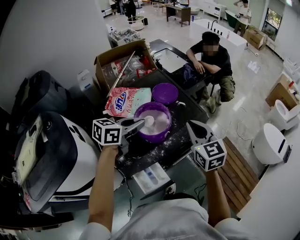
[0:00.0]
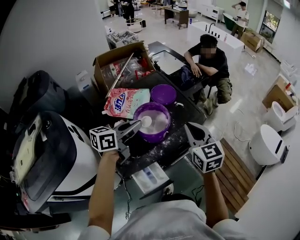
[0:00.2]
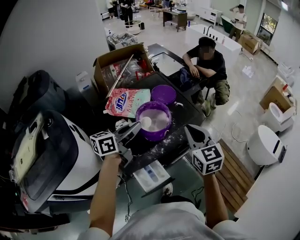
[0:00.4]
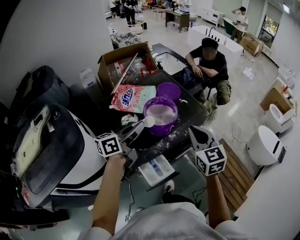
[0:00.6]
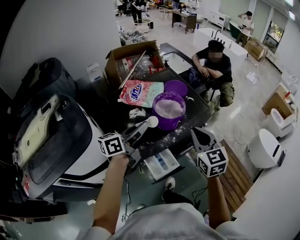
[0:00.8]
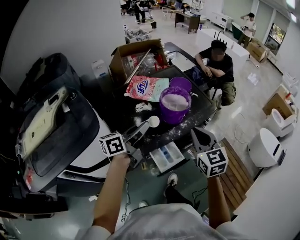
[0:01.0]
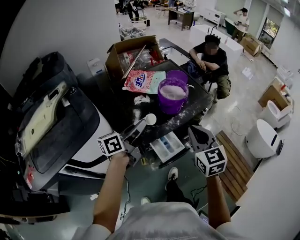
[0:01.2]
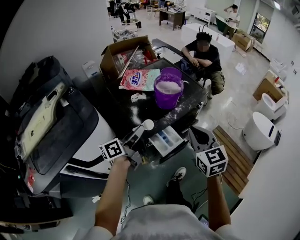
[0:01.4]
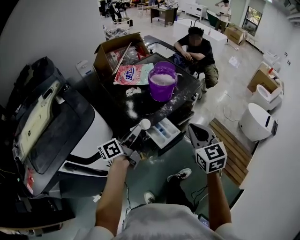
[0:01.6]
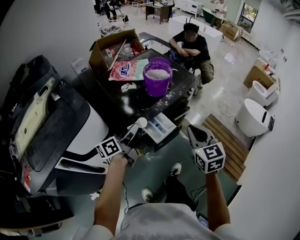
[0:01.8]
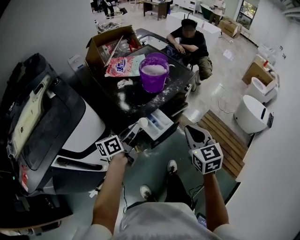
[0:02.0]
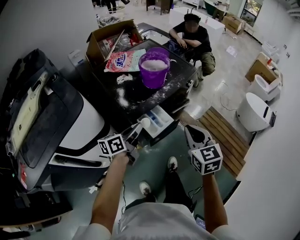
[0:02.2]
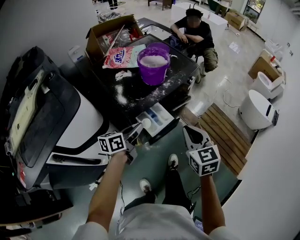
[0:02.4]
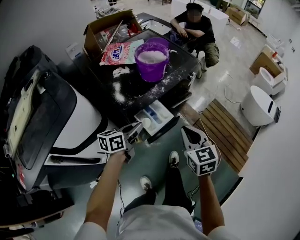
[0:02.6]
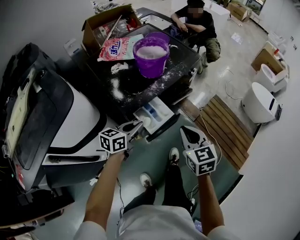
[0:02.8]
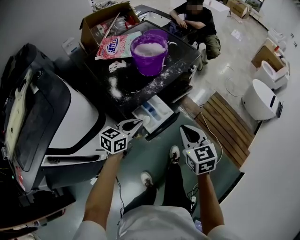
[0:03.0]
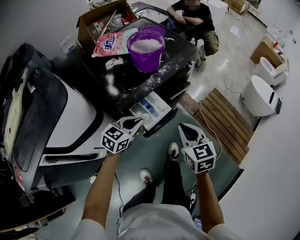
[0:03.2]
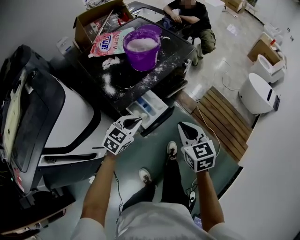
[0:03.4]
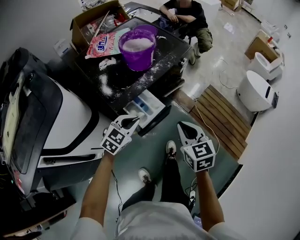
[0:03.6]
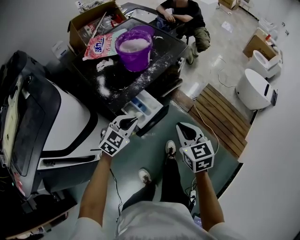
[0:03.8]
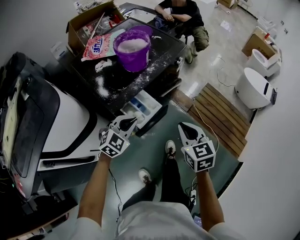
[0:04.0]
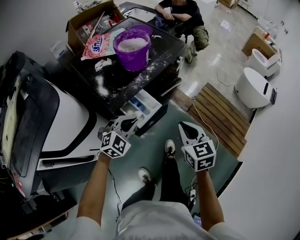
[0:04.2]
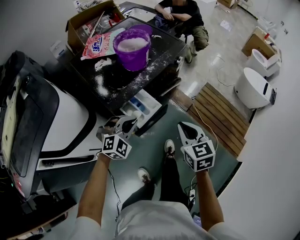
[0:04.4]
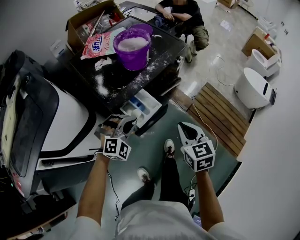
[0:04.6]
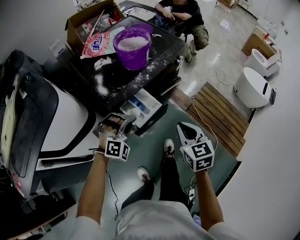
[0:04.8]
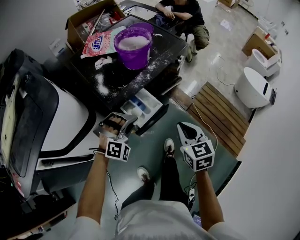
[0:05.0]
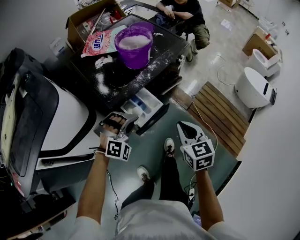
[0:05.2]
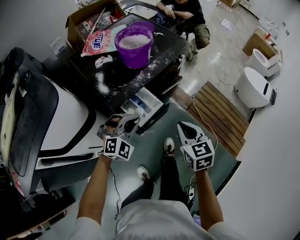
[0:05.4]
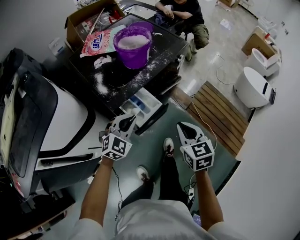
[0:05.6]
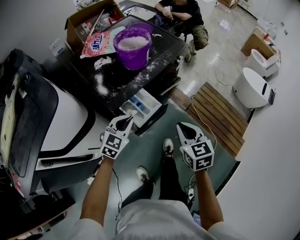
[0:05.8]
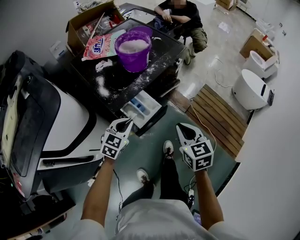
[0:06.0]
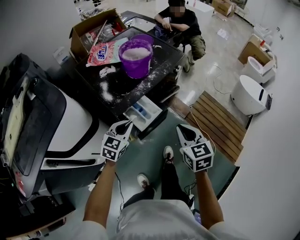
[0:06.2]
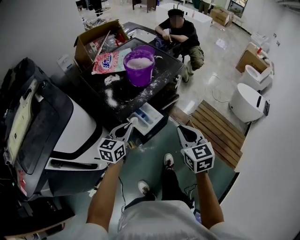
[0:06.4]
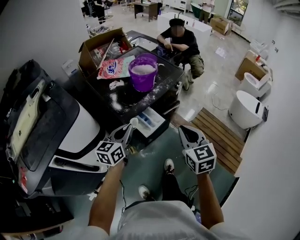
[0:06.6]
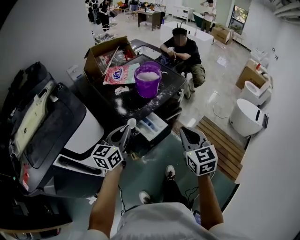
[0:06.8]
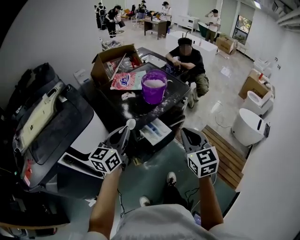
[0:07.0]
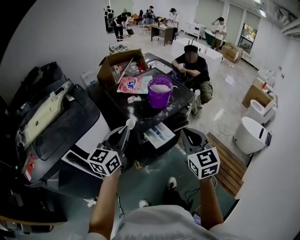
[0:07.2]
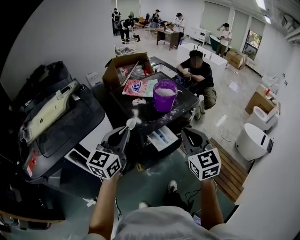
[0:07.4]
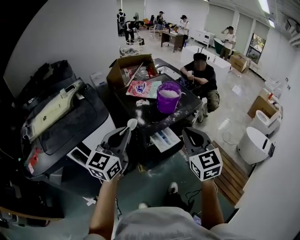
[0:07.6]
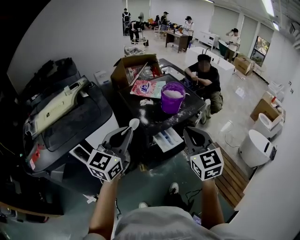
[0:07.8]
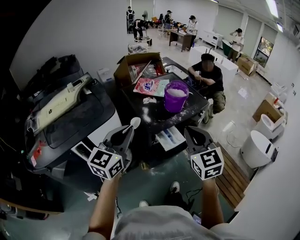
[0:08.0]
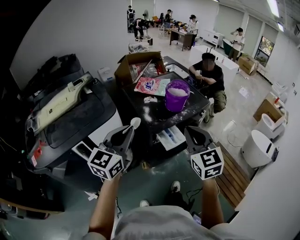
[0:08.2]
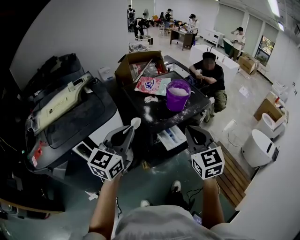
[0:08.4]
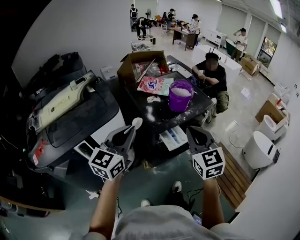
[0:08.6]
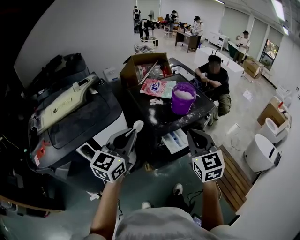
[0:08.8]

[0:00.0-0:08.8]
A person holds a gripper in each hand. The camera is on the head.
0:00.0 to 0:01.4: Both grippers move backward, some 25 cm. The left gripper swivels roughly 40 degrees.
0:01.4 to 0:03.0: The right gripper goes roughly 15 cm downward; the left gripper moves downward and to the right, approximately 20 cm, and rotates some 50 degrees.
0:03.0 to 0:04.4: The left gripper rolls clockwise, seen from behind, by some 70 degrees.
0:04.4 to 0:05.8: The left gripper swivels roughly 40 degrees.
0:05.8 to 0:07.4: The right gripper heads upward and to the left, covering about 25 cm, and turns by some 30 degrees, while the left gripper shifts about 30 cm upward, and angles its fingers upward, by approximately 30 degrees.
0:07.4 to 0:08.8: The right gripper moves to the left, some 5 cm.

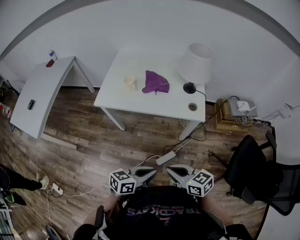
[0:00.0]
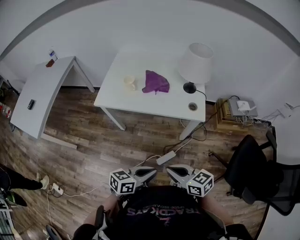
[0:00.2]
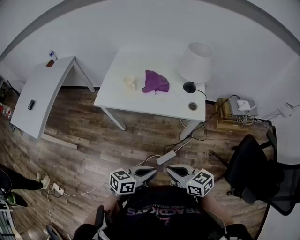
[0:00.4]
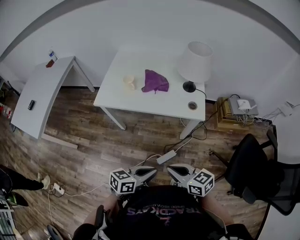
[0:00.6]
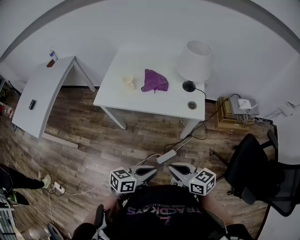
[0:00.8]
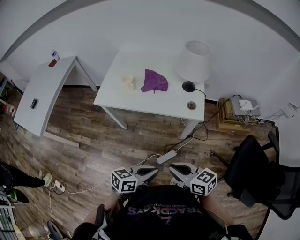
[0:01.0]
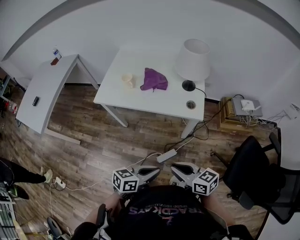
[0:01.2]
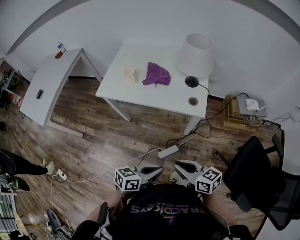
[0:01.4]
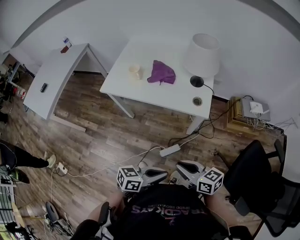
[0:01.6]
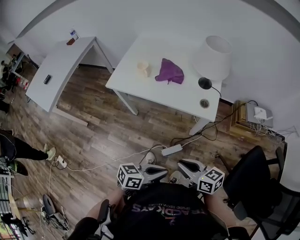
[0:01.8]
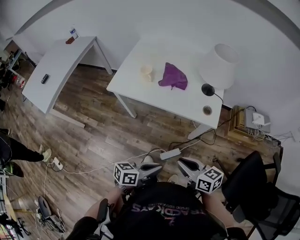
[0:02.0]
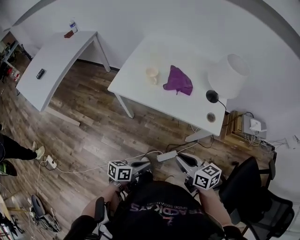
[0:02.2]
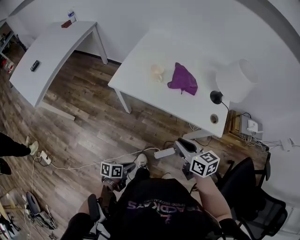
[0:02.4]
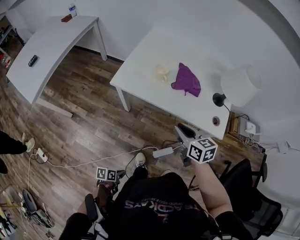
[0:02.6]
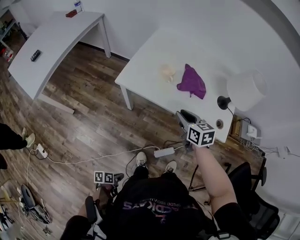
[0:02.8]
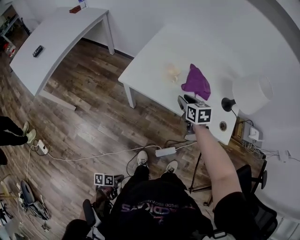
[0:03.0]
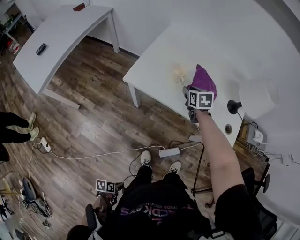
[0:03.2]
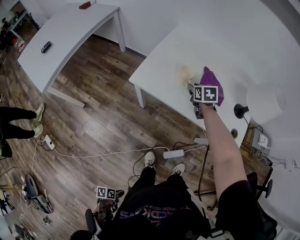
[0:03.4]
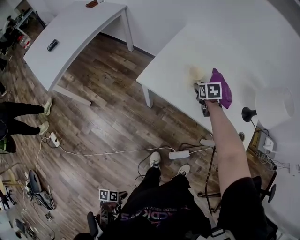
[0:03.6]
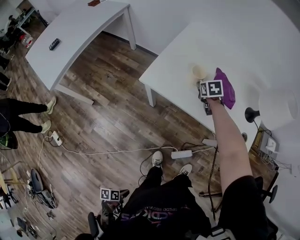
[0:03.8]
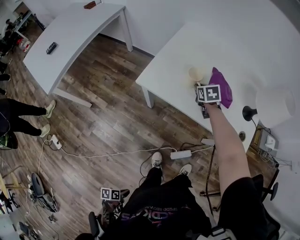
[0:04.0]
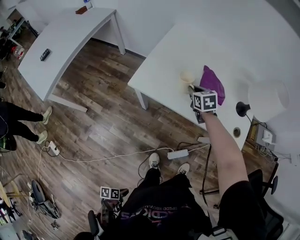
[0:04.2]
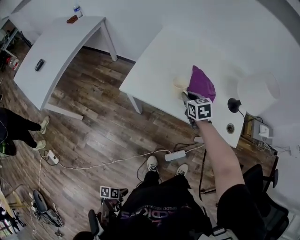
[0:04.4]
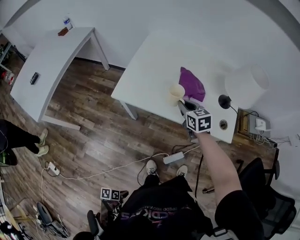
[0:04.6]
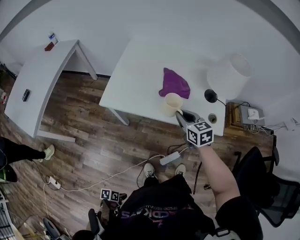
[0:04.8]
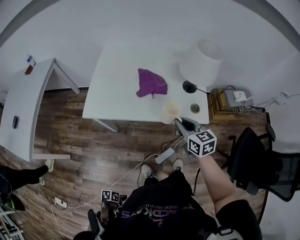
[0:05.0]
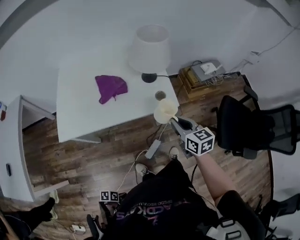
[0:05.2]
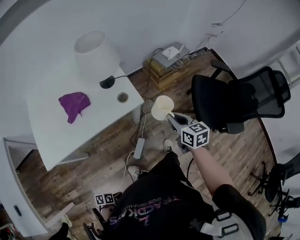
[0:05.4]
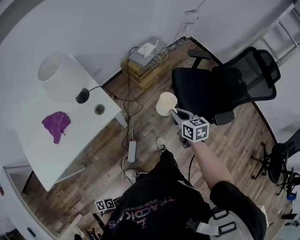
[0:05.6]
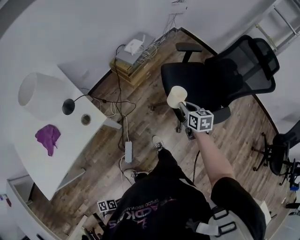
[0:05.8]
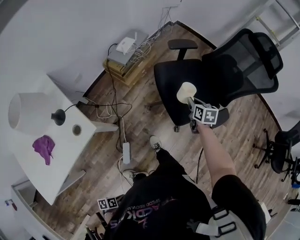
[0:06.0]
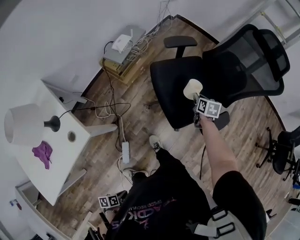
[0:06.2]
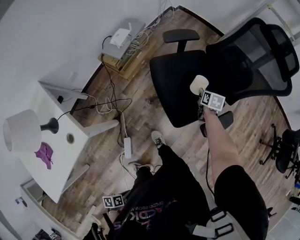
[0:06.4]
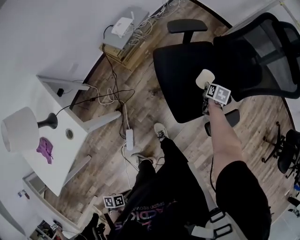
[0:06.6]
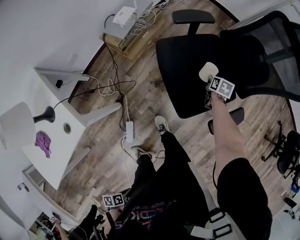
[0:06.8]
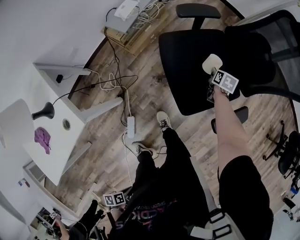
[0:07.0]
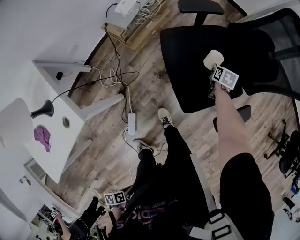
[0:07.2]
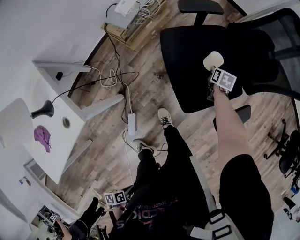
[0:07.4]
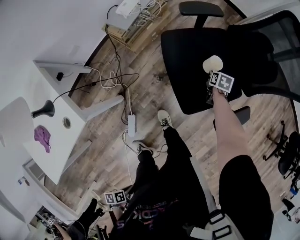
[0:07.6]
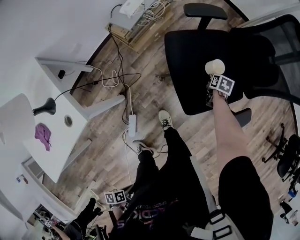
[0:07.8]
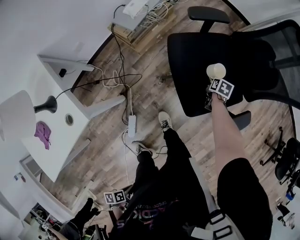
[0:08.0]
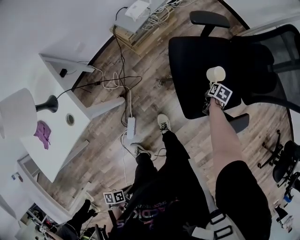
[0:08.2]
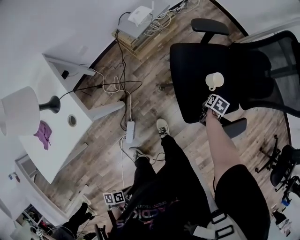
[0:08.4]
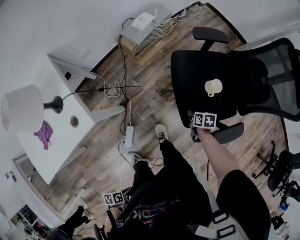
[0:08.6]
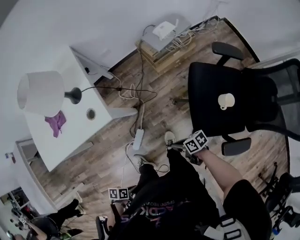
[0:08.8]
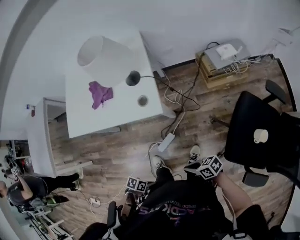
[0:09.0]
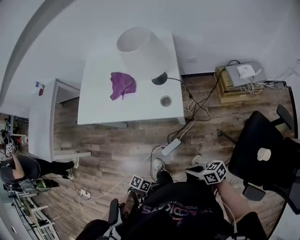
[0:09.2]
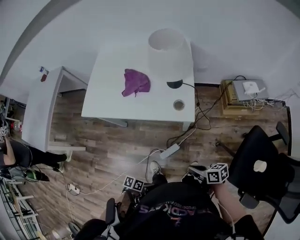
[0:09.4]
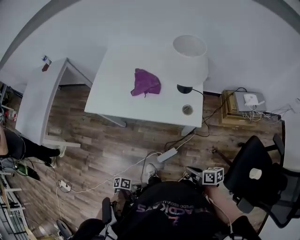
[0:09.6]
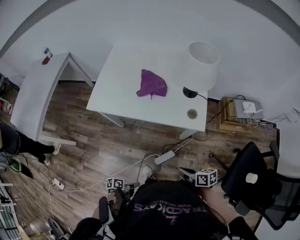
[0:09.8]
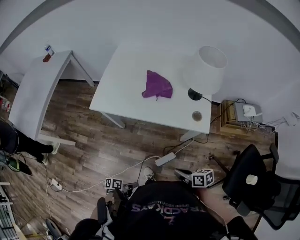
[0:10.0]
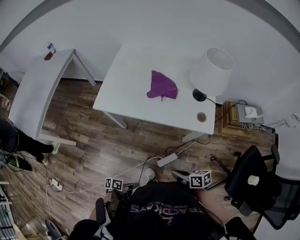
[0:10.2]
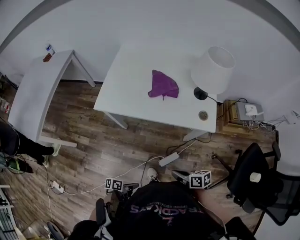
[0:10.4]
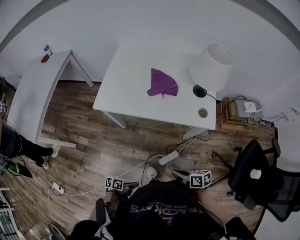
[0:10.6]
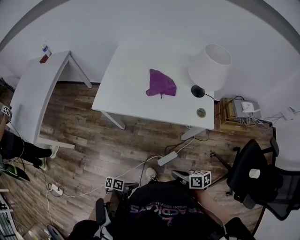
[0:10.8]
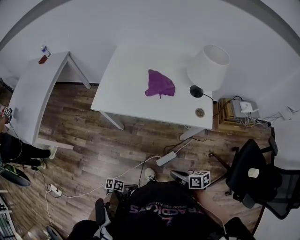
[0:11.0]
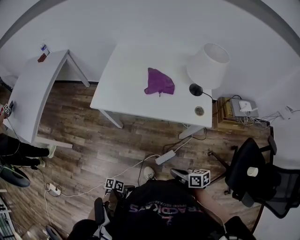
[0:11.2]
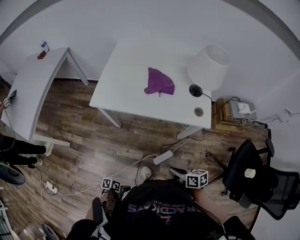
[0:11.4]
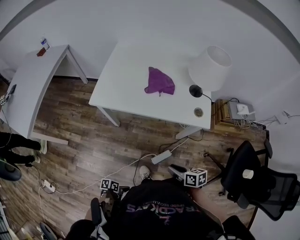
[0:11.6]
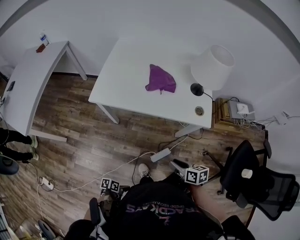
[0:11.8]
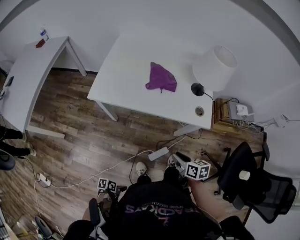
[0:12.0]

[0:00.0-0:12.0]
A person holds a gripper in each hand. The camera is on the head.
0:00.0 to 0:01.6: The right gripper ends up about 10 cm from where it was.
0:01.6 to 0:03.0: The right gripper ends up approximately 50 cm from where it was, and turns by roughly 30 degrees.
0:04.4 to 0:06.0: The right gripper moves some 10 cm upward and comes back, and swivels about 90 degrees.
0:06.0 to 0:07.6: The right gripper heads downward, covering roughly 20 cm, and turns by some 20 degrees.
0:07.6 to 0:09.0: The right gripper moves roughly 60 cm, and tips its fingers upward by about 40 degrees.
0:09.0 to 0:10.4: The right gripper moves approximately 30 cm.
0:10.4 to 0:12.0: The right gripper changes place by approximately 10 cm, turns by approximately 20 degrees, and opens.

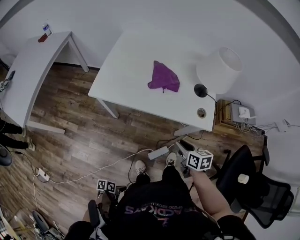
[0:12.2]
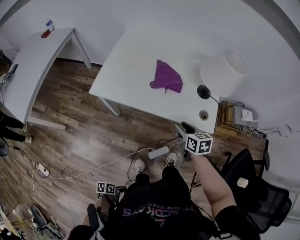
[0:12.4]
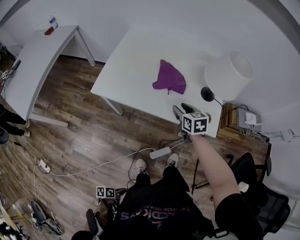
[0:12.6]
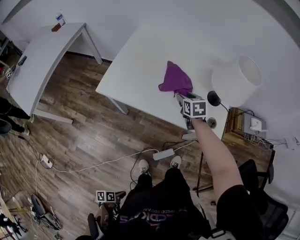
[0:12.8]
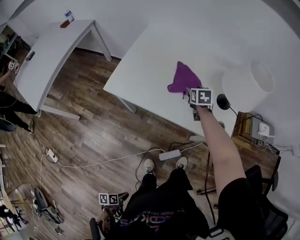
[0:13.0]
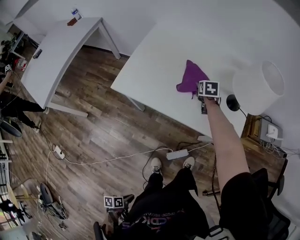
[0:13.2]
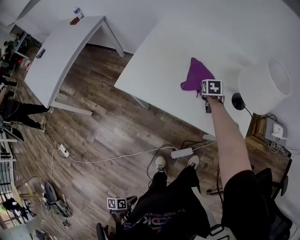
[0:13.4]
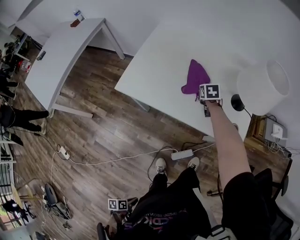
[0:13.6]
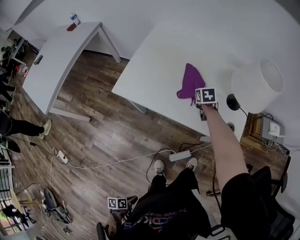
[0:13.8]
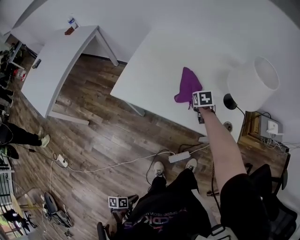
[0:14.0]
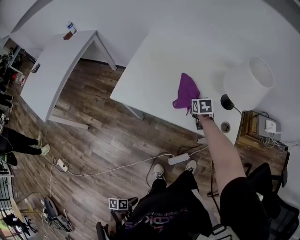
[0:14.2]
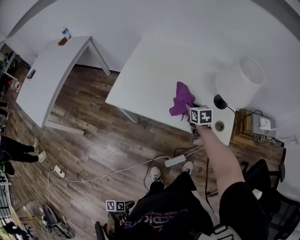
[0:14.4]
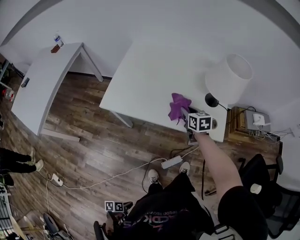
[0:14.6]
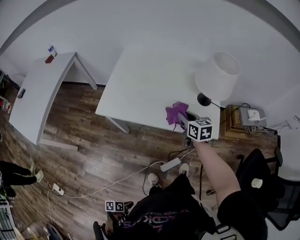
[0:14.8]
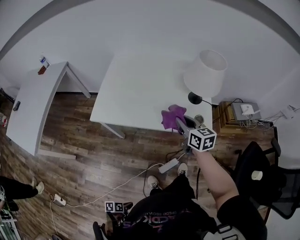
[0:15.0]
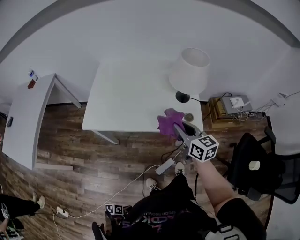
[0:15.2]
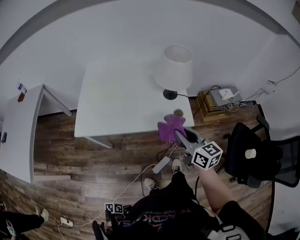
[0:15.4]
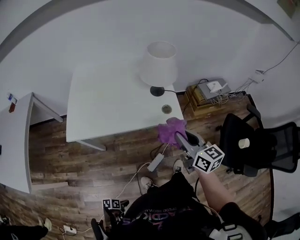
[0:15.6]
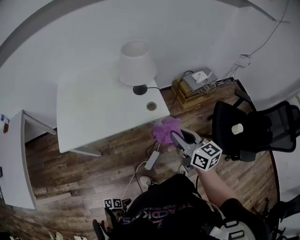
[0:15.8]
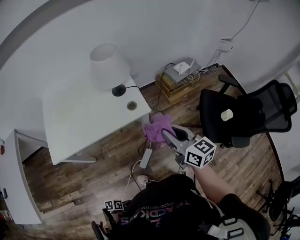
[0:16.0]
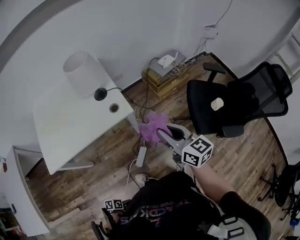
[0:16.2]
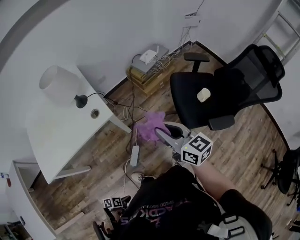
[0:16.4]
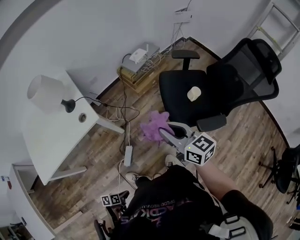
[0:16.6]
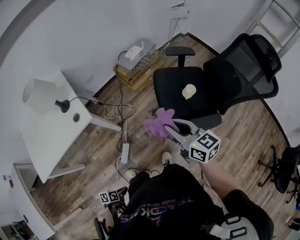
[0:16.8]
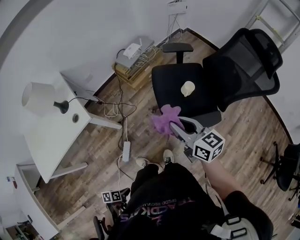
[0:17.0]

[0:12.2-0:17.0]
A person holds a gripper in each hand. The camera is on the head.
0:12.2 to 0:13.8: The right gripper ends up about 35 cm from where it was, swivels some 30 degrees, and opens, then closes again.
0:13.8 to 0:15.4: The right gripper moves about 40 cm, and tips its fingers upward by about 40 degrees.
0:15.4 to 0:17.0: The right gripper changes place by some 60 cm, and rotates approximately 30 degrees.
